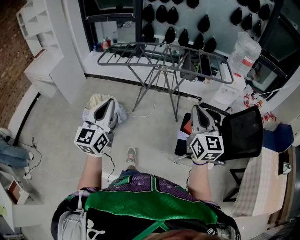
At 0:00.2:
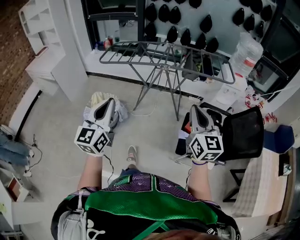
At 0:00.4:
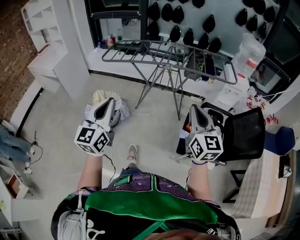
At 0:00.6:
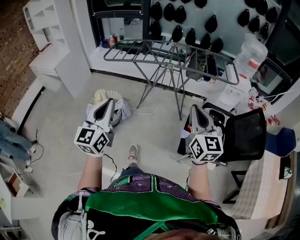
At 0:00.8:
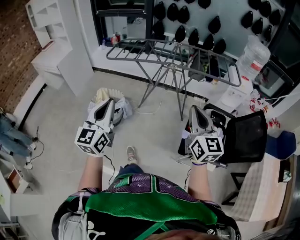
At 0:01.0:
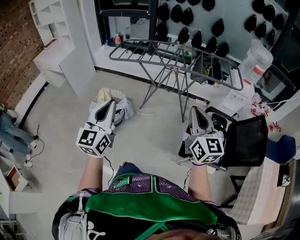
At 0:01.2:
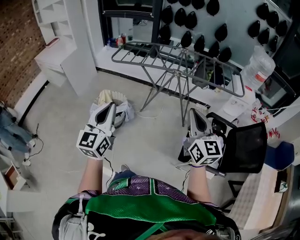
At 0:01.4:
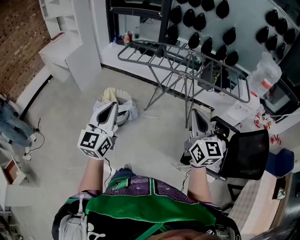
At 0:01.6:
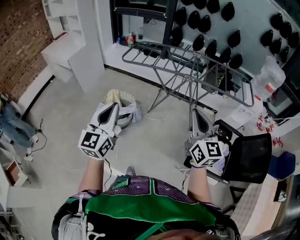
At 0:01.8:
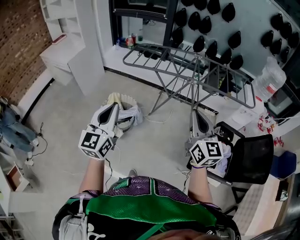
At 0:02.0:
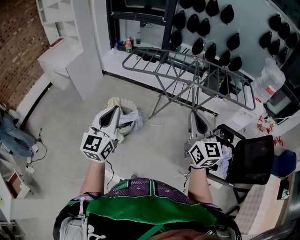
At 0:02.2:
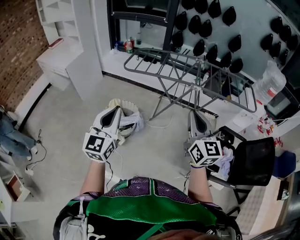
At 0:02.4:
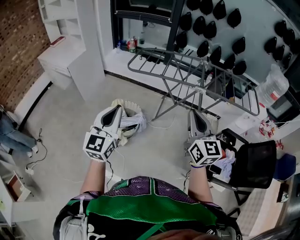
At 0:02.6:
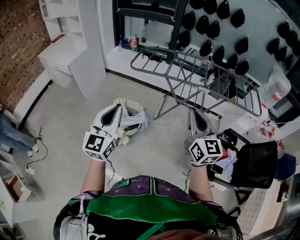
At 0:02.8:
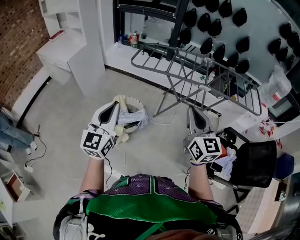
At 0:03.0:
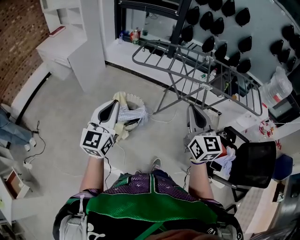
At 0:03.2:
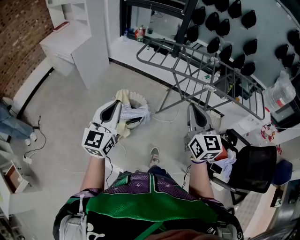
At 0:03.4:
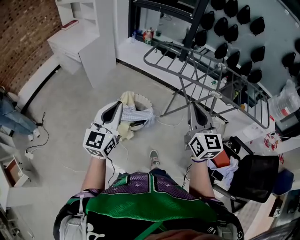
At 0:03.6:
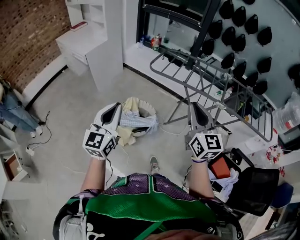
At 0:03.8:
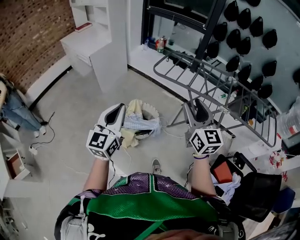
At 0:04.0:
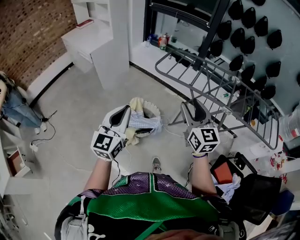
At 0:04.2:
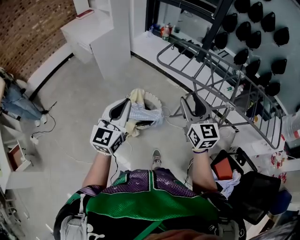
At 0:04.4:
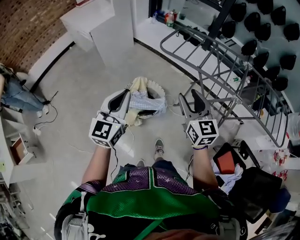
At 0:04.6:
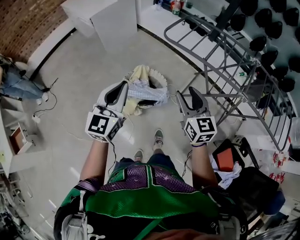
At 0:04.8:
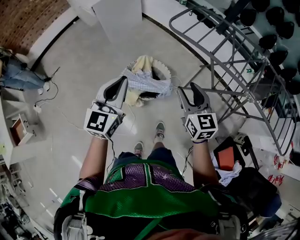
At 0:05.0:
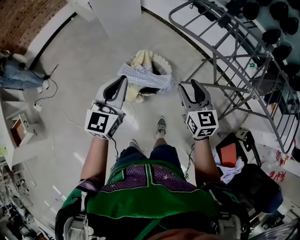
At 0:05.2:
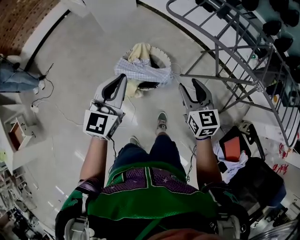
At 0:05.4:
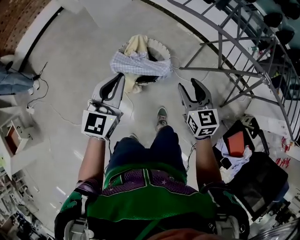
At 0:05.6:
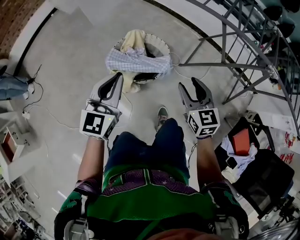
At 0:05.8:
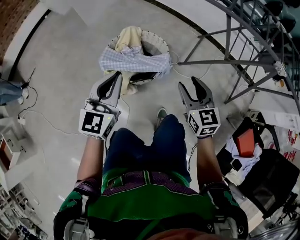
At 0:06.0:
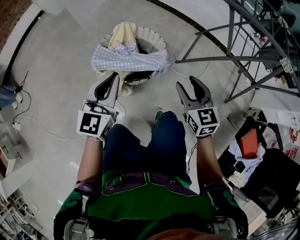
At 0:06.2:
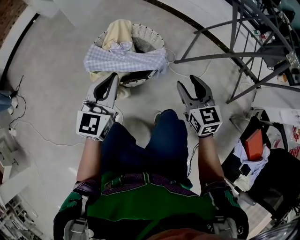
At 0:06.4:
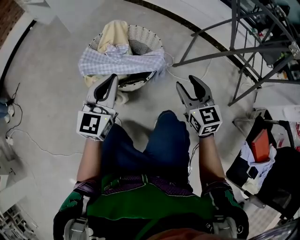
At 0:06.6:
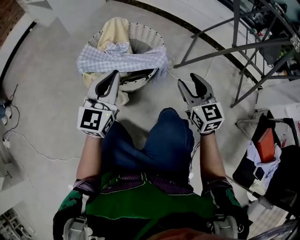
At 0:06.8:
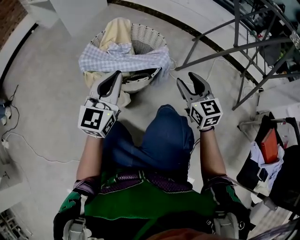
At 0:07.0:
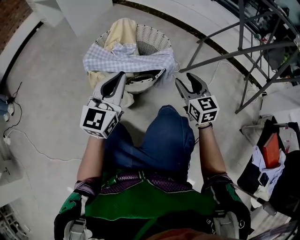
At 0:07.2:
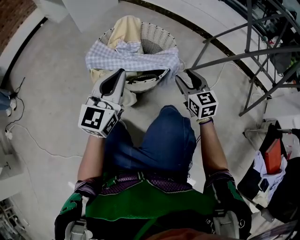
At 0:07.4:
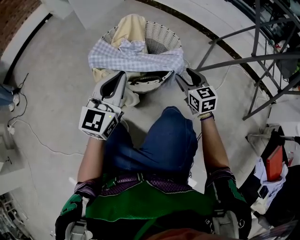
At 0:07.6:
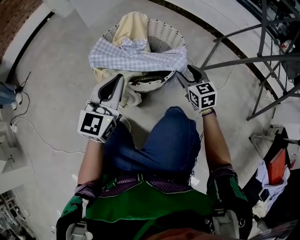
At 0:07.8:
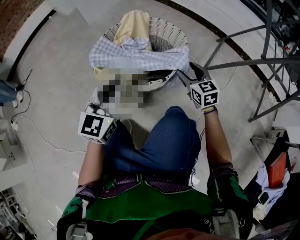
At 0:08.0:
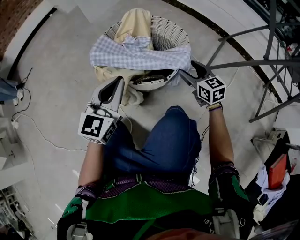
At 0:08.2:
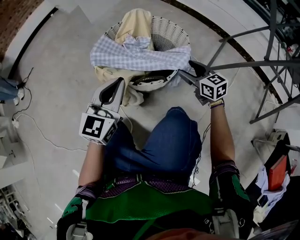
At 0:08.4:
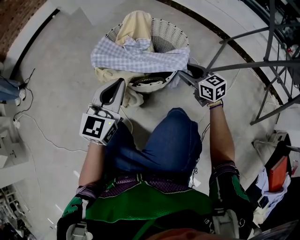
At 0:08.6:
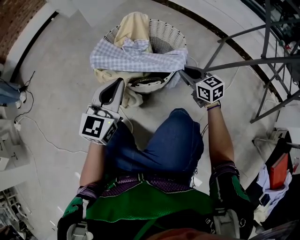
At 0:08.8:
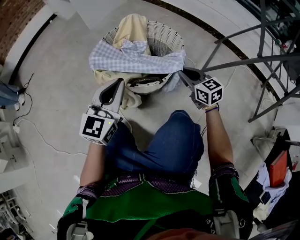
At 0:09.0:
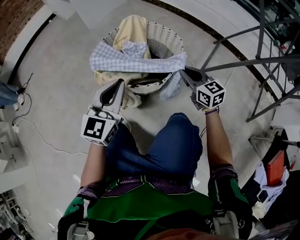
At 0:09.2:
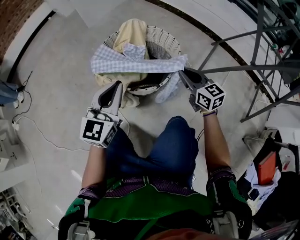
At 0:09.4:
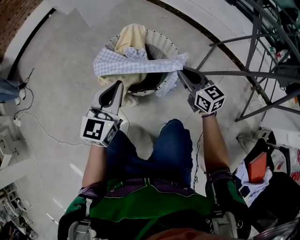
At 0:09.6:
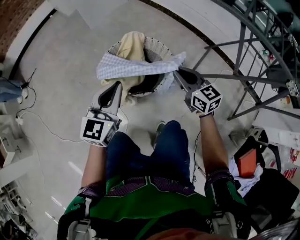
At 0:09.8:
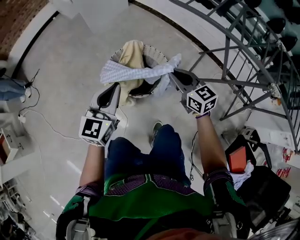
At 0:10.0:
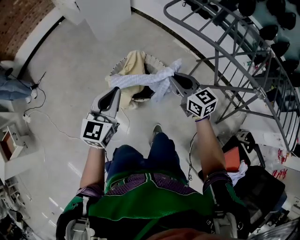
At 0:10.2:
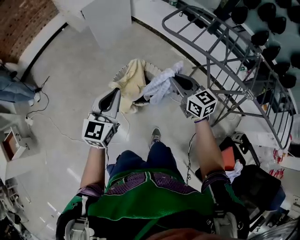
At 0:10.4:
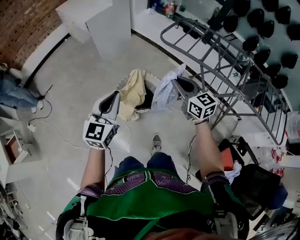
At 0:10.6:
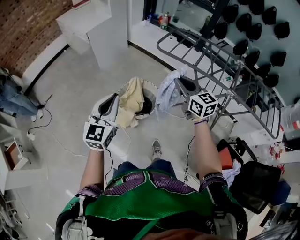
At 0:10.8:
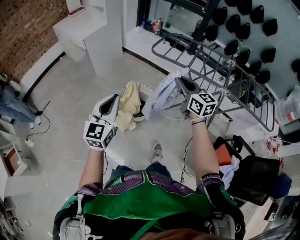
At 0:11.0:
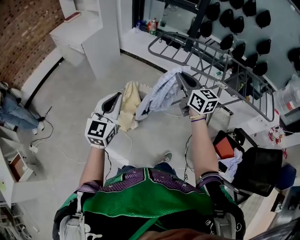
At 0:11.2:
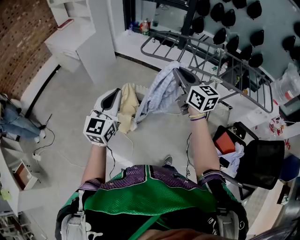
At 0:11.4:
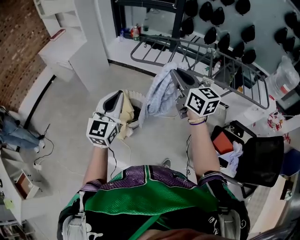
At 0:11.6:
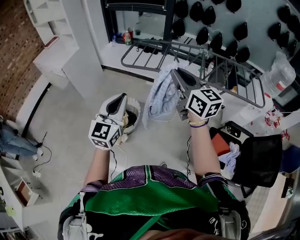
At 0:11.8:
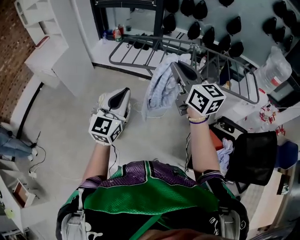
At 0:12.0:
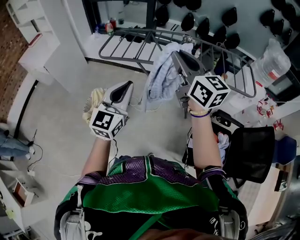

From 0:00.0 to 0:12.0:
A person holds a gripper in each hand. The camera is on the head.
From 0:00.0 to 0:01.6: The right gripper goes some 15 cm to the left and forward. Meanwhile the left gripper heads to the left, covering roughly 10 cm.
From 0:01.6 to 0:03.0: Both grippers travel together to the left and forward, about 20 cm.
From 0:03.0 to 0:04.4: The right gripper shifts roughly 20 cm forward and downward, rotates approximately 20 degrees, and opens its fingers; the left gripper goes roughly 15 cm forward and downward.
From 0:04.4 to 0:06.0: Both grippers move downward, roughly 40 cm.
From 0:06.0 to 0:07.6: Both grippers move downward, some 25 cm.
From 0:07.6 to 0:09.0: The right gripper closes its fingers.
From 0:09.0 to 0:10.4: The grippers both shift upward by approximately 60 cm.
From 0:10.4 to 0:12.0: The left gripper ends up about 35 cm from where it was, and turns by roughly 30 degrees. Meanwhile the right gripper shifts by about 40 cm, and rotates about 30 degrees.

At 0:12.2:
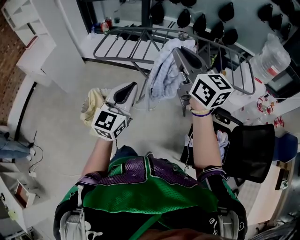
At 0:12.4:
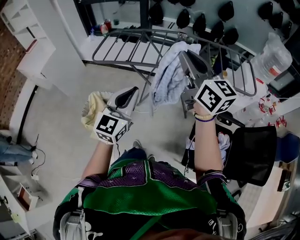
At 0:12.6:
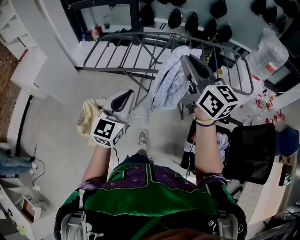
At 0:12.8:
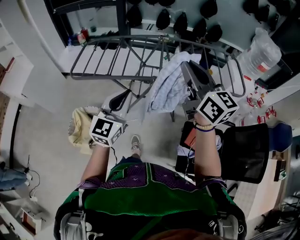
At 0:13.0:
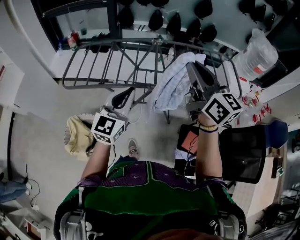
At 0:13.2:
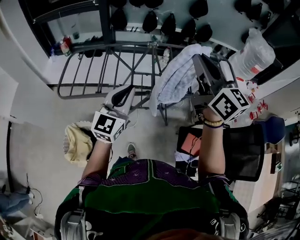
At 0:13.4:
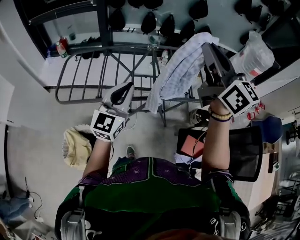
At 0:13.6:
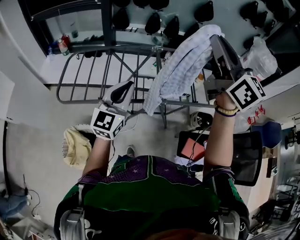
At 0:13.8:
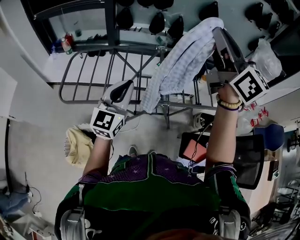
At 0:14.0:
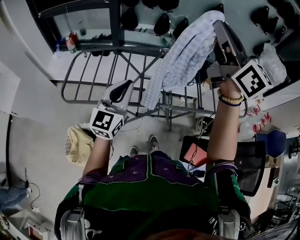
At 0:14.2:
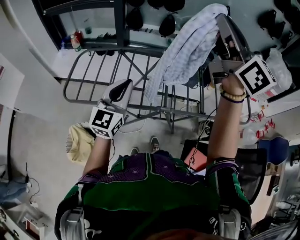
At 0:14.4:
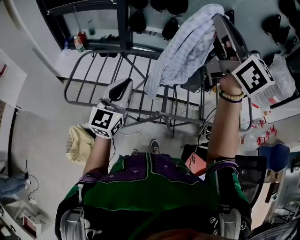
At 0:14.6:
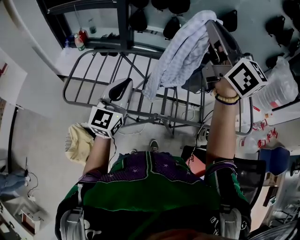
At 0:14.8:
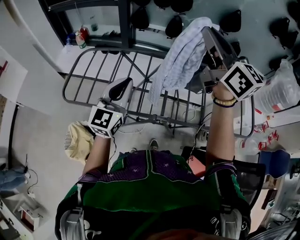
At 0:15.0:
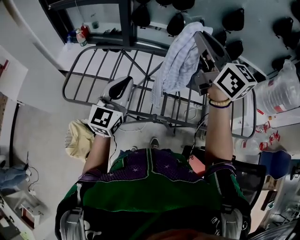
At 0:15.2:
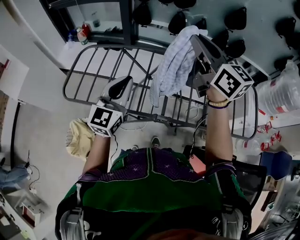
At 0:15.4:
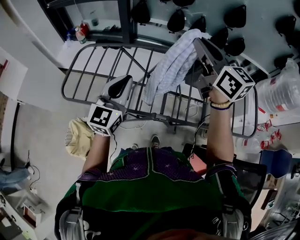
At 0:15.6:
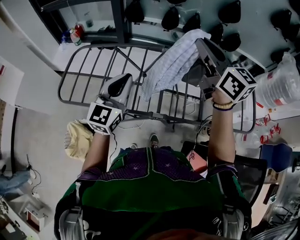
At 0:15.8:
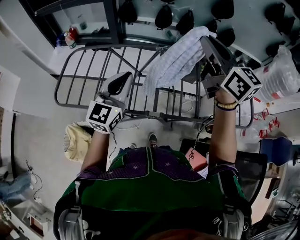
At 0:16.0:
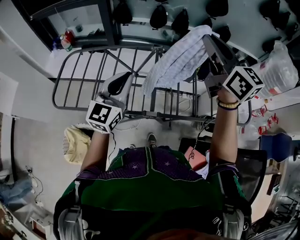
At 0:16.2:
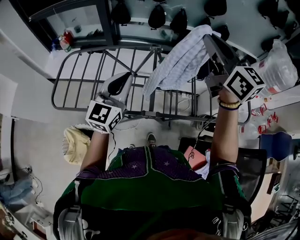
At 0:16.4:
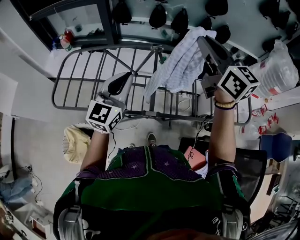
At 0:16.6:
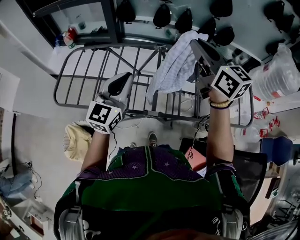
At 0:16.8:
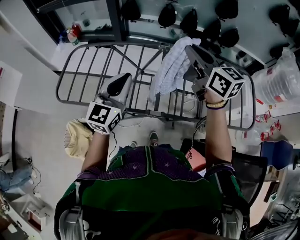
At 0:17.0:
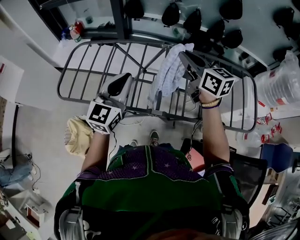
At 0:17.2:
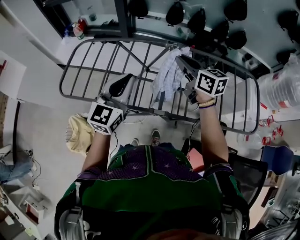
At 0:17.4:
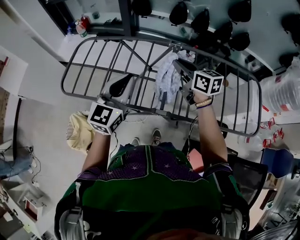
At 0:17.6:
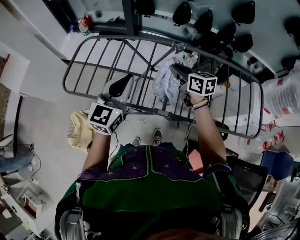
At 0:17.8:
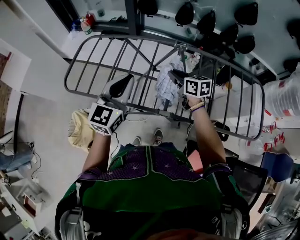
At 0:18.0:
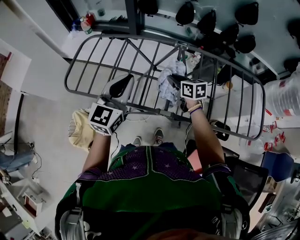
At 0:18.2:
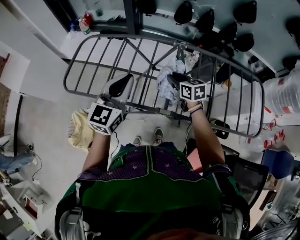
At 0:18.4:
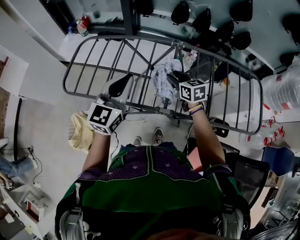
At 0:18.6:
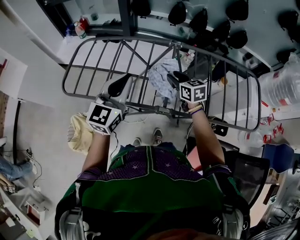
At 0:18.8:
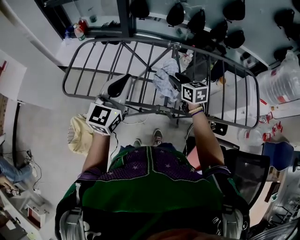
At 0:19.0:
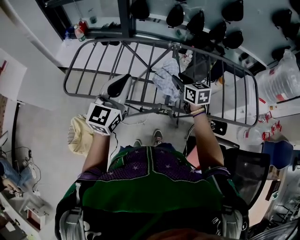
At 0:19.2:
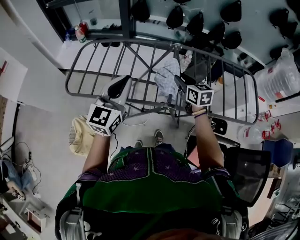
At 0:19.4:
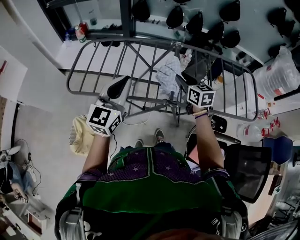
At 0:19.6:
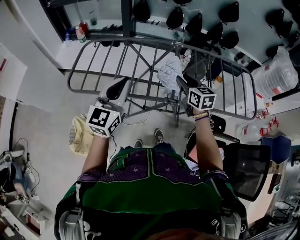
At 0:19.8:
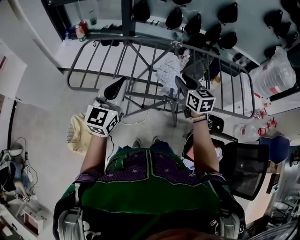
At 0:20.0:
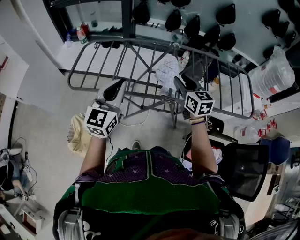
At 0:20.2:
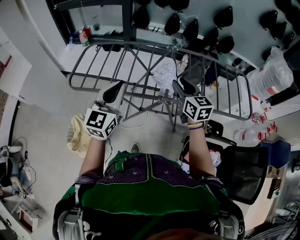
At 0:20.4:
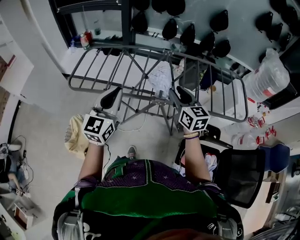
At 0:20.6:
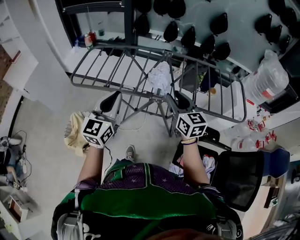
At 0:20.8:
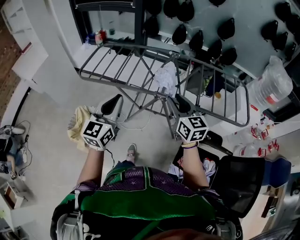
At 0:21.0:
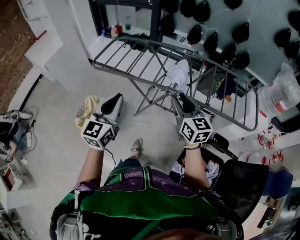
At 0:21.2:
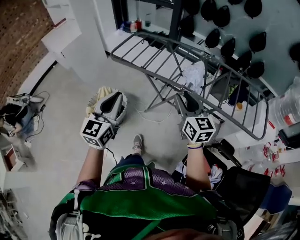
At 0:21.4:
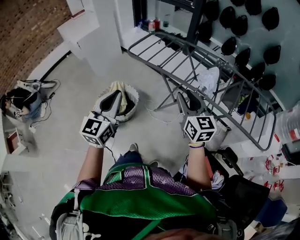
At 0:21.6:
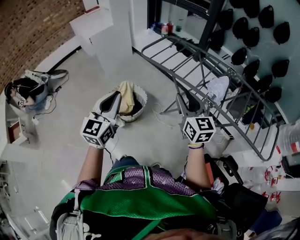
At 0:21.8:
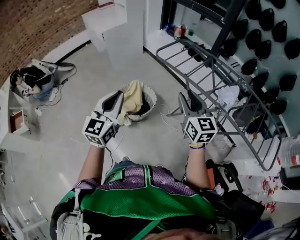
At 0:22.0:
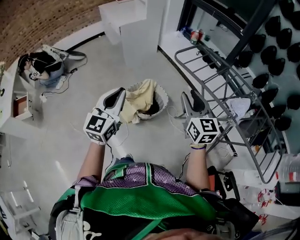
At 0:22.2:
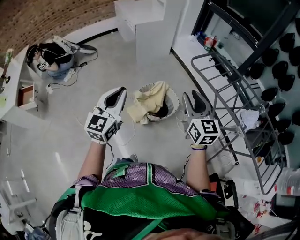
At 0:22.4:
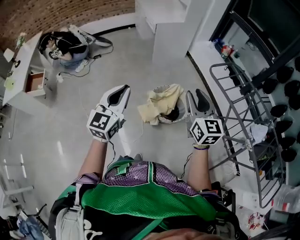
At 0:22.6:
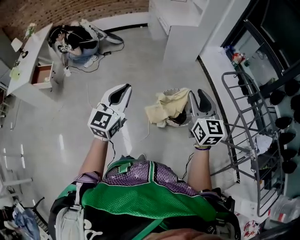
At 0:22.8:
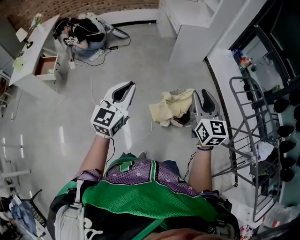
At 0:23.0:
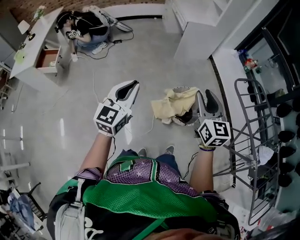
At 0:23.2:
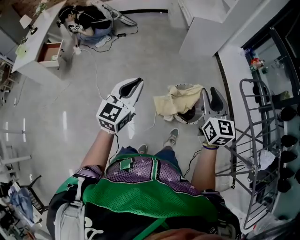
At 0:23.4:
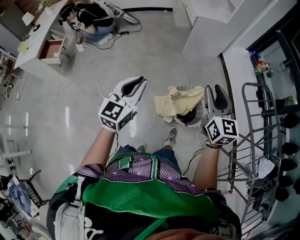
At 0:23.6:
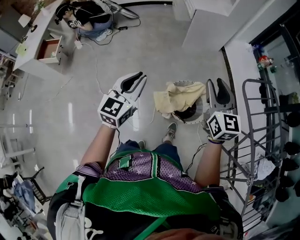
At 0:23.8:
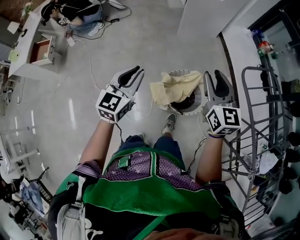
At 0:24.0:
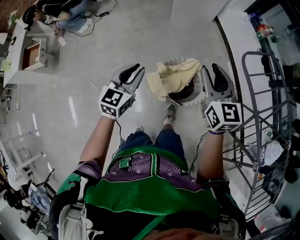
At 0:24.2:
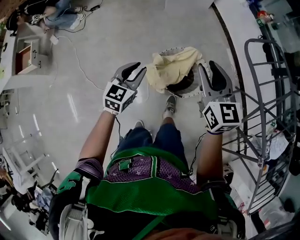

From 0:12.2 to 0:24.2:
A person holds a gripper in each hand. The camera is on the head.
From 0:12.2 to 0:13.8: The left gripper travels forward by approximately 35 cm. The right gripper shifts roughly 35 cm forward and upward.
From 0:13.8 to 0:15.2: The left gripper travels forward by some 10 cm; the right gripper travels forward and downward by approximately 20 cm.
From 0:15.2 to 0:16.6: Both grippers travel together to the right, roughly 5 cm.
From 0:16.6 to 0:18.2: The left gripper travels to the left by approximately 5 cm; the right gripper shifts roughly 30 cm downward, and swivels about 30 degrees.
From 0:18.2 to 0:19.8: The left gripper moves backward and to the left, some 15 cm. The right gripper goes approximately 15 cm backward and upward, and changes its angle by some 20 degrees.
From 0:19.8 to 0:21.2: The two grippers go roughly 25 cm backward. The left gripper swivels roughly 20 degrees. The right gripper changes its angle by approximately 20 degrees.
From 0:21.2 to 0:22.6: Both grippers are carried approximately 60 cm. The right gripper turns by approximately 30 degrees, while the left gripper turns by about 40 degrees.
From 0:22.6 to 0:24.2: The left gripper heads downward, forward and to the right, covering approximately 40 cm, changes its angle by about 30 degrees, and opens up. Meanwhile the right gripper is displaced forward, downward and to the right by approximately 30 cm.
